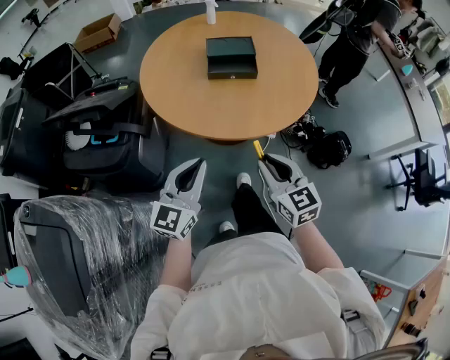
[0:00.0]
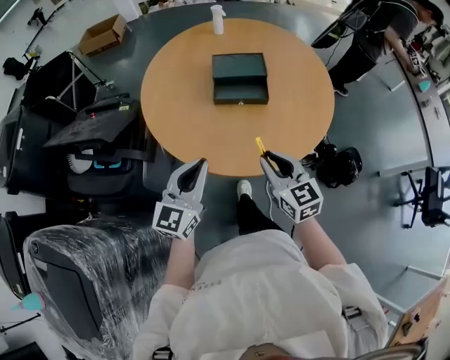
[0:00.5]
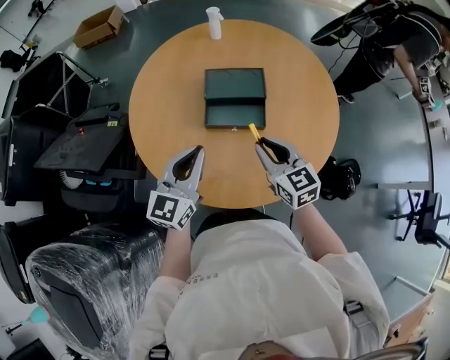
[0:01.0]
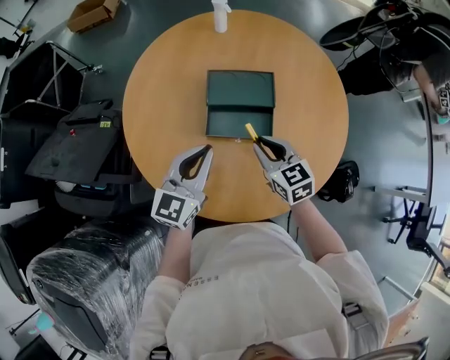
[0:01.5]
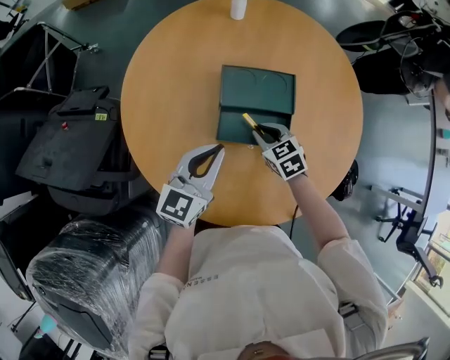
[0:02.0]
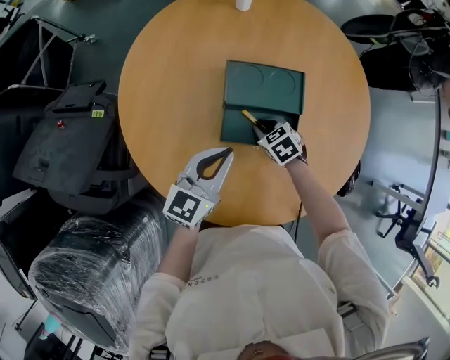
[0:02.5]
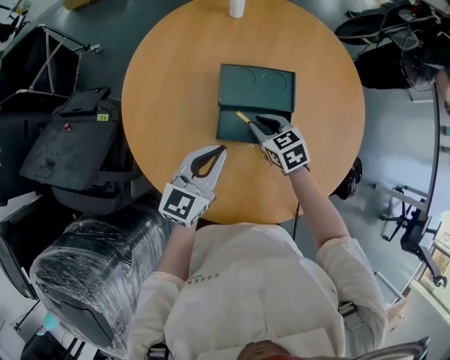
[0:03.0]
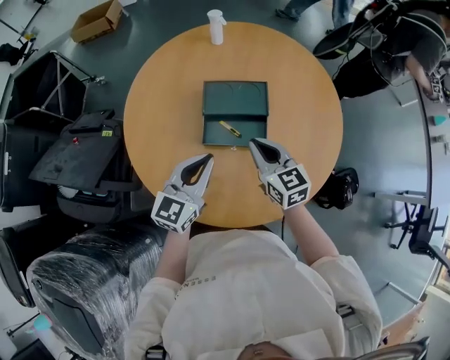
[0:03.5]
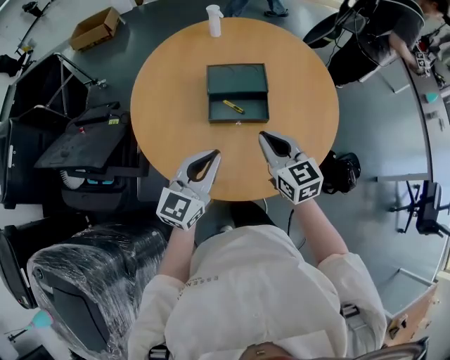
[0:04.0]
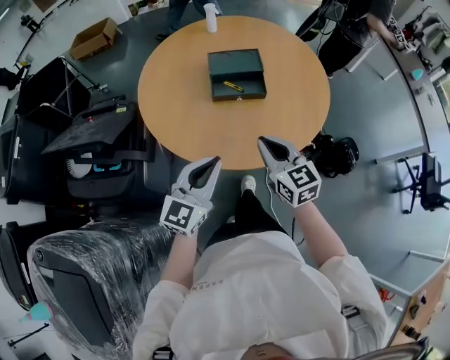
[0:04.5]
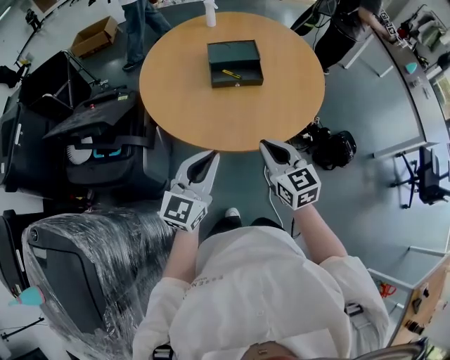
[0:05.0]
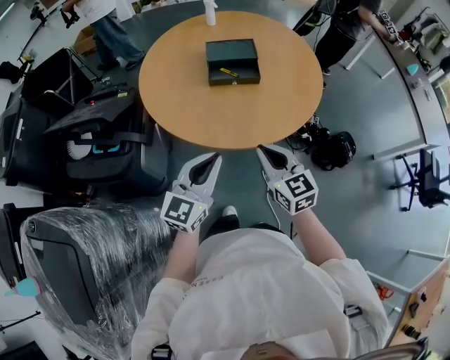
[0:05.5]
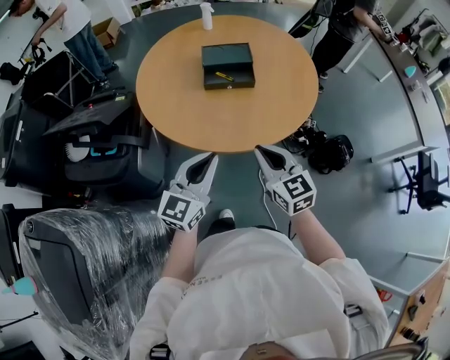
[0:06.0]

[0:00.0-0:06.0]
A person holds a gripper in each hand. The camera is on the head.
0:00.0 to 0:02.0: Both grippers are carried forward, some 50 cm. The right gripper points its fingers roughly 30 degrees further downward.
0:02.0 to 0:04.0: The right gripper shifts some 25 cm upward and backward, and points its fingers roughly 30 degrees further upward, while the left gripper heads backward and upward, covering approximately 15 cm.
0:04.0 to 0:06.0: Both grippers move backward, some 25 cm.

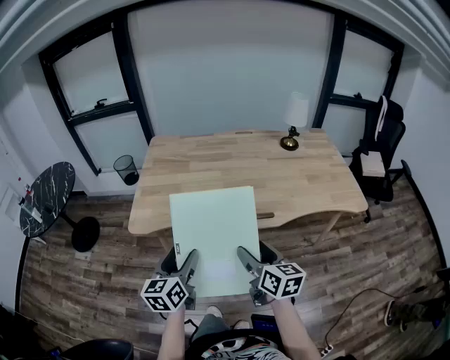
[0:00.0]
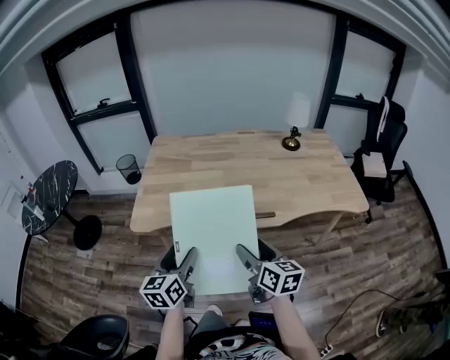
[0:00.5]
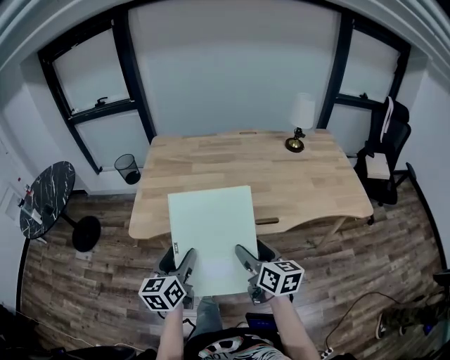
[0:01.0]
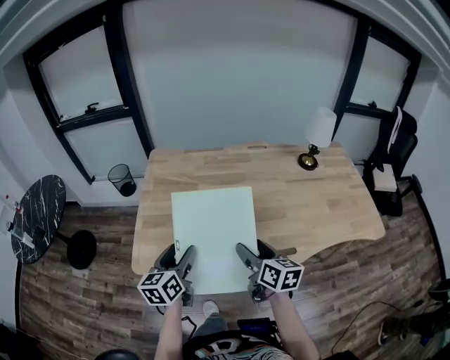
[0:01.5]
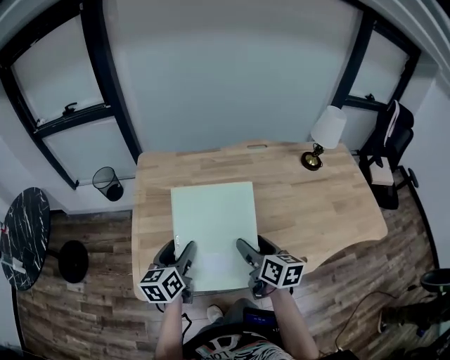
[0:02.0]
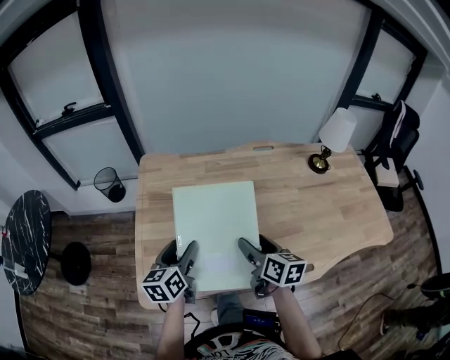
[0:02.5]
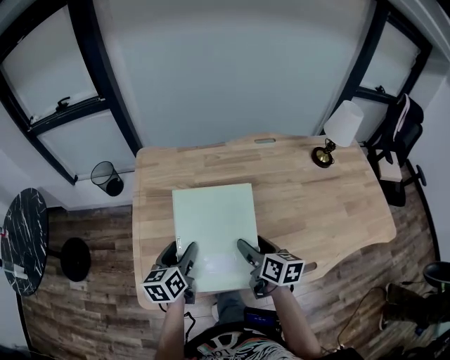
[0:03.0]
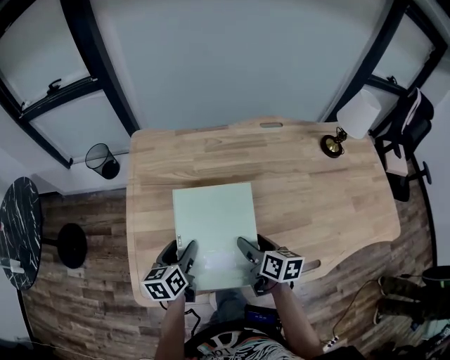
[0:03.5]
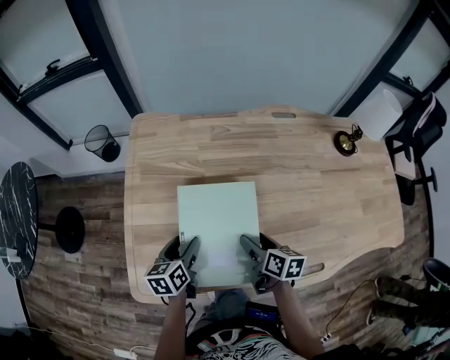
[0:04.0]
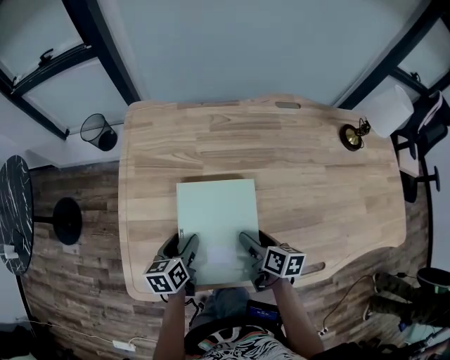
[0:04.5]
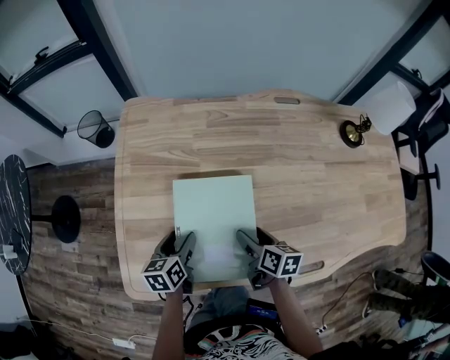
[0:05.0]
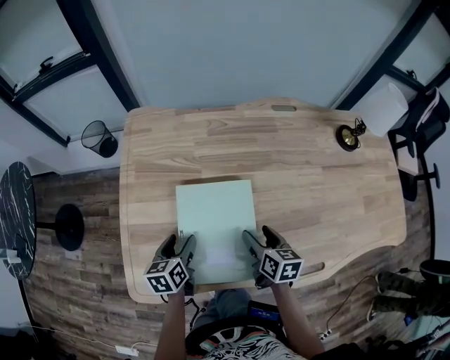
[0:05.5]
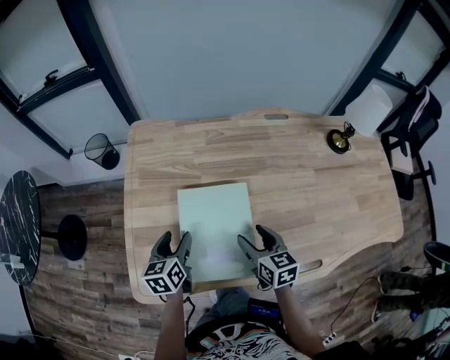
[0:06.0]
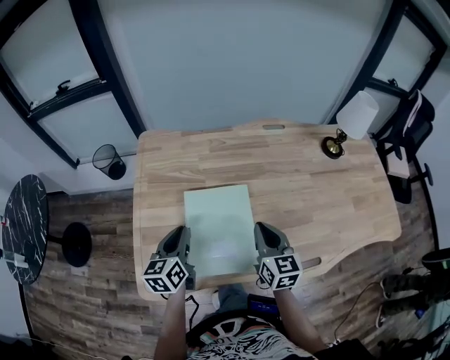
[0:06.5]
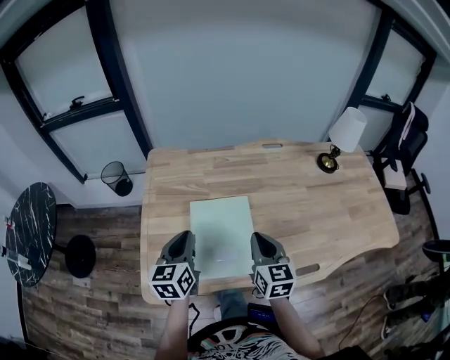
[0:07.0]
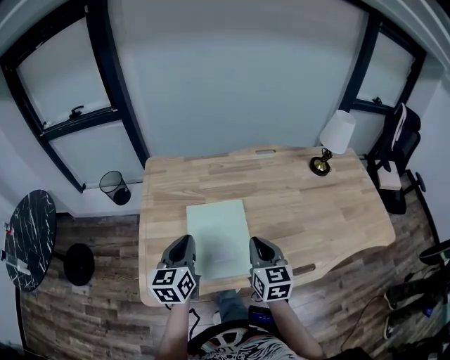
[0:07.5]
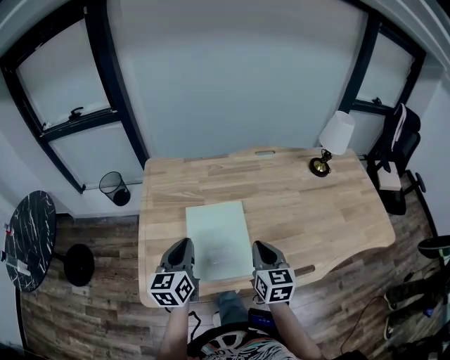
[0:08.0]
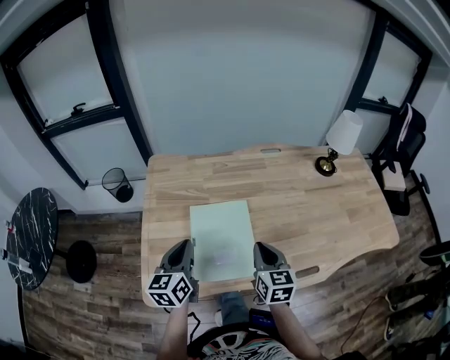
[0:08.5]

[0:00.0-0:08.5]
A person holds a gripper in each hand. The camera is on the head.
0:00.0 to 0:02.0: Both grippers move forward, approximately 35 cm.
0:02.0 to 0:04.0: Both grippers move downward and forward, some 15 cm.
0:04.0 to 0:06.5: Both grippers travel together upward, approximately 10 cm. The right gripper swivels approximately 40 degrees, and closes up. Meanwhile the left gripper closes up.
0:06.5 to 0:08.5: The left gripper goes about 5 cm upward. The right gripper goes roughly 5 cm backward.

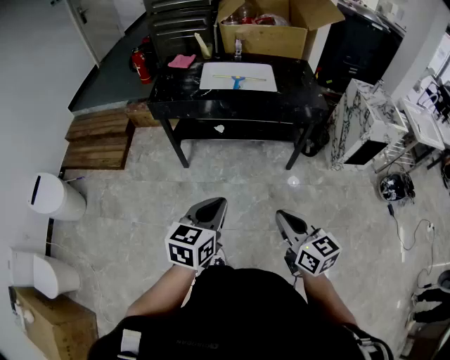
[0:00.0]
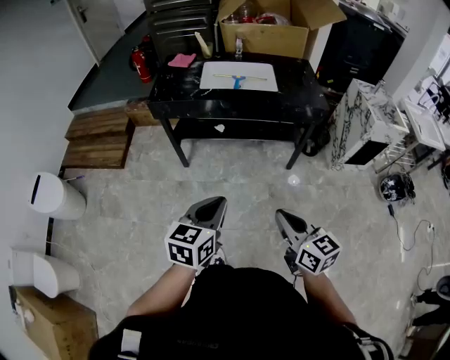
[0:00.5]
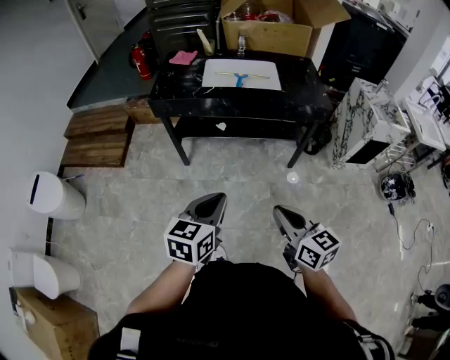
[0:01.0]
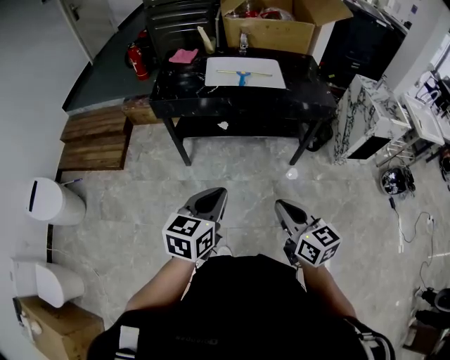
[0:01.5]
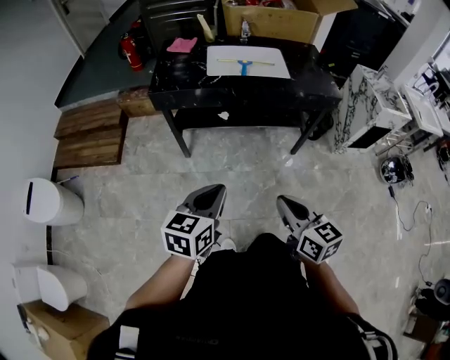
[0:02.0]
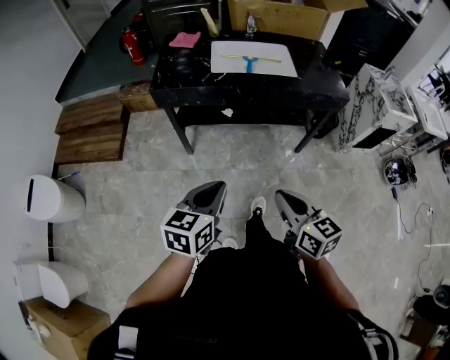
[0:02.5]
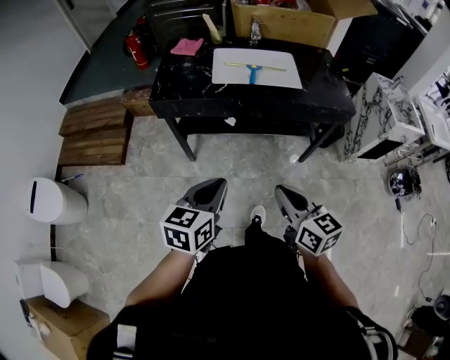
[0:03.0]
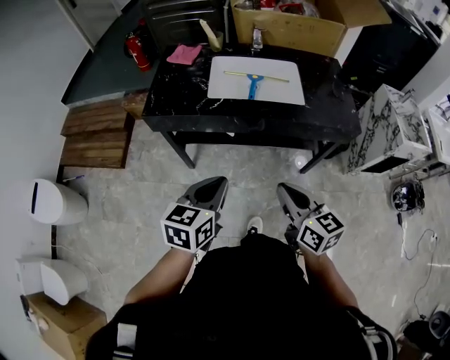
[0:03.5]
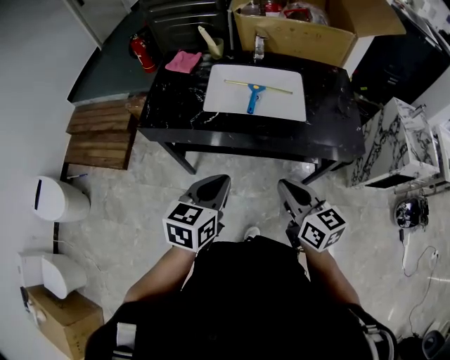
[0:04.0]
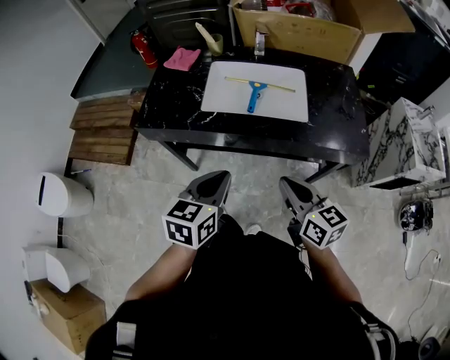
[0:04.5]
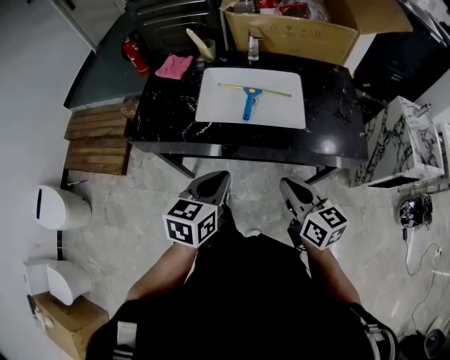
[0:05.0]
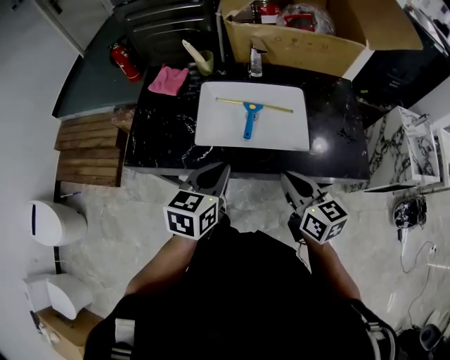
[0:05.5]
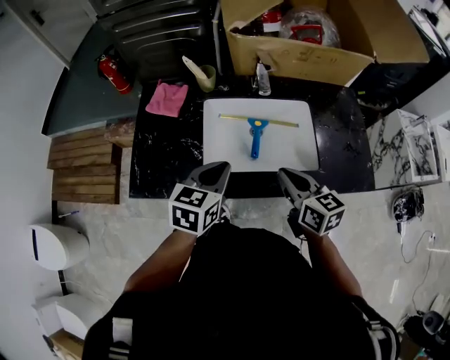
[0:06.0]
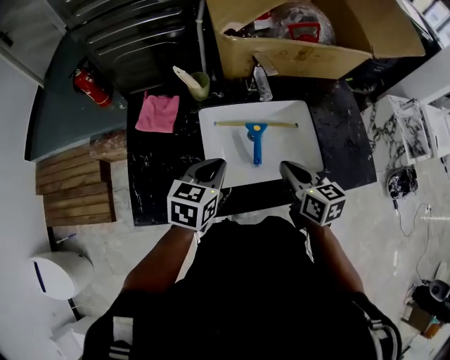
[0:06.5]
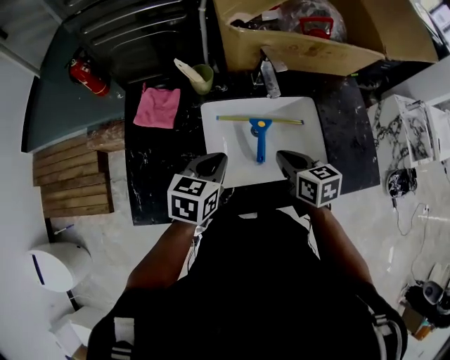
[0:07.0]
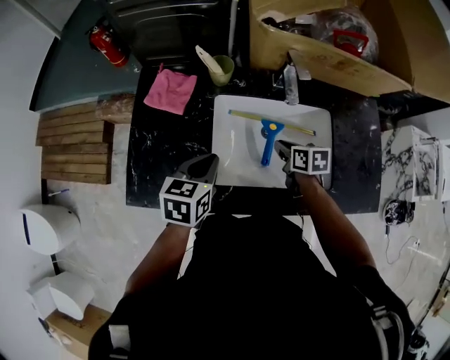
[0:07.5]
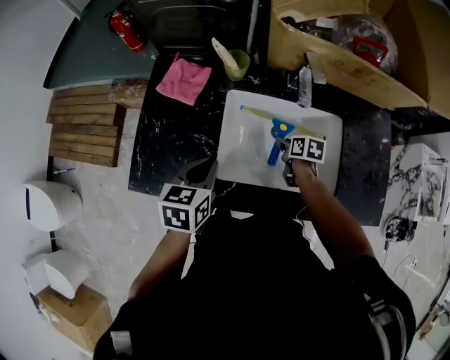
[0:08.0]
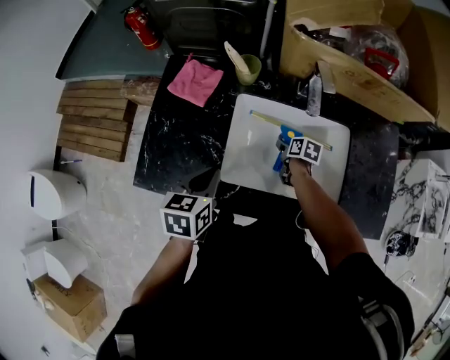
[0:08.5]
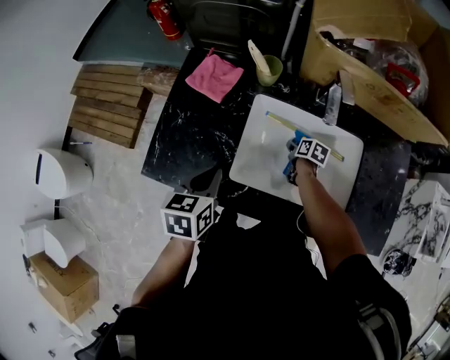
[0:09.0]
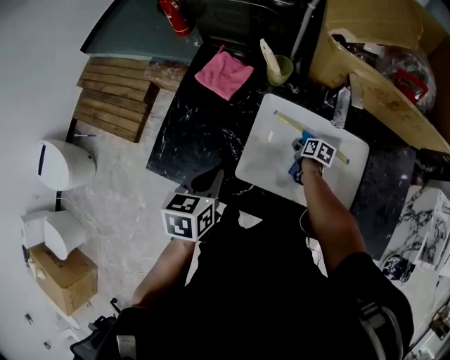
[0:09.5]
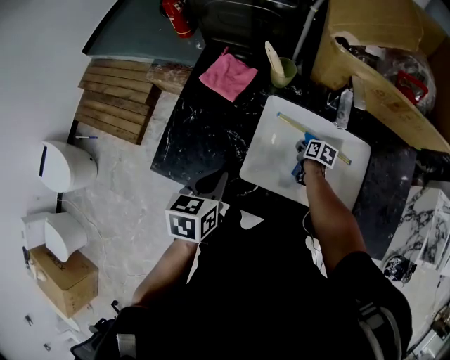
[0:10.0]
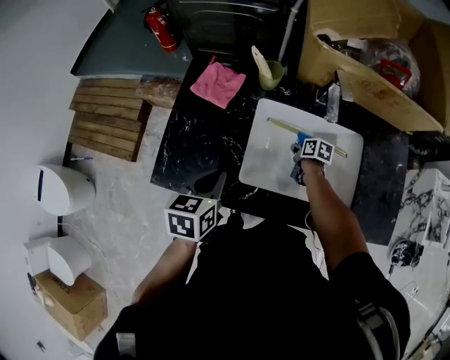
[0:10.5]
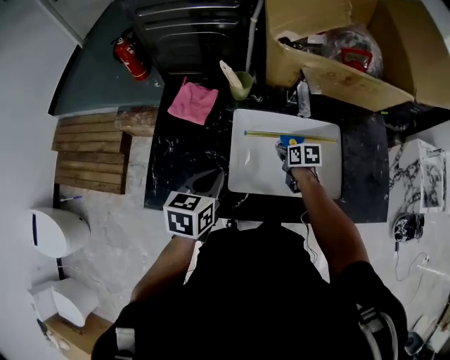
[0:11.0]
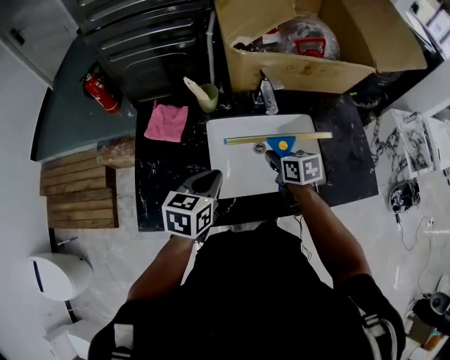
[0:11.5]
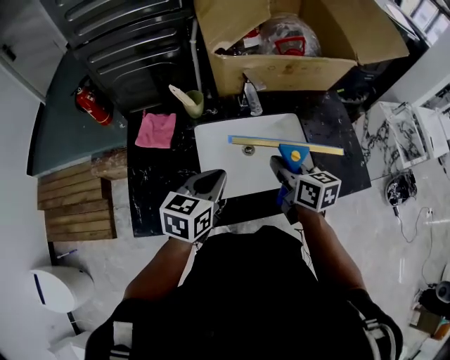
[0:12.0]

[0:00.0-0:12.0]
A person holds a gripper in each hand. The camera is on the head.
0:00.0 to 0:02.0: Both grippers travel together to the left and forward, about 10 cm.
0:02.0 to 0:04.0: Both grippers travel together forward, roughly 30 cm.
0:04.0 to 0:06.0: The two grippers go about 30 cm forward.
0:06.0 to 0:08.0: The left gripper is displaced to the left, forward and downward by approximately 10 cm, while the right gripper goes approximately 30 cm downward and forward, tips its fingers downward by about 30 degrees, and opens its fingers.
0:08.0 to 0:10.0: The right gripper goes roughly 10 cm downward, and closes up. The left gripper changes place by roughly 5 cm.
0:10.0 to 0:12.0: The left gripper changes place by approximately 15 cm, and turns by roughly 40 degrees. Meanwhile the right gripper heads upward, covering roughly 30 cm, and swivels roughly 40 degrees.
